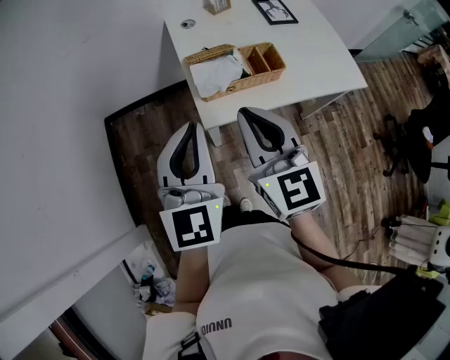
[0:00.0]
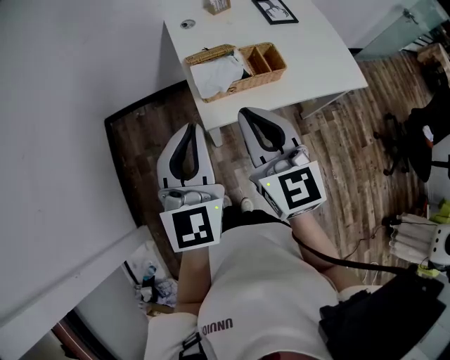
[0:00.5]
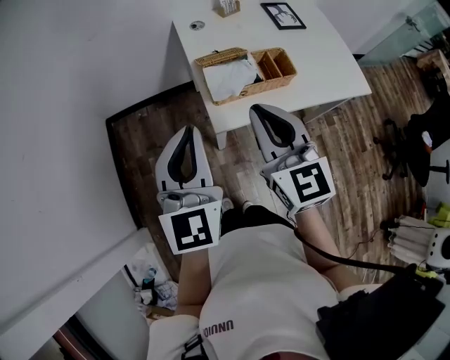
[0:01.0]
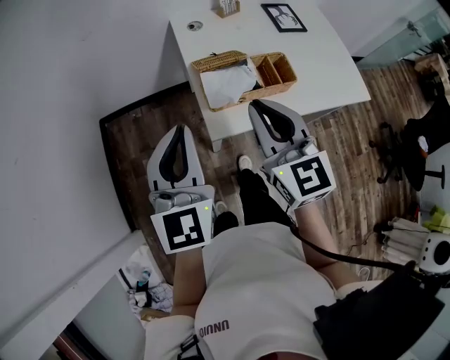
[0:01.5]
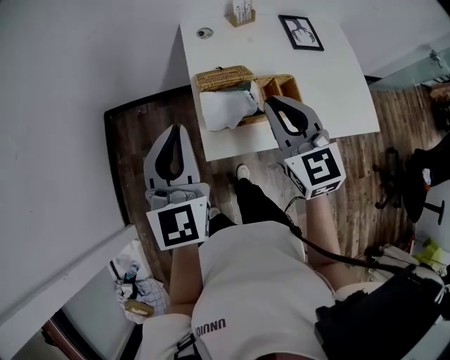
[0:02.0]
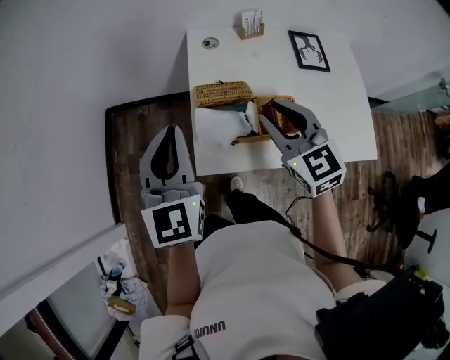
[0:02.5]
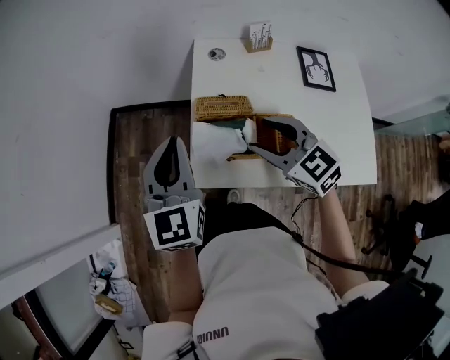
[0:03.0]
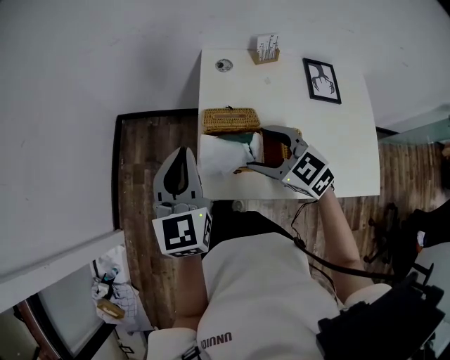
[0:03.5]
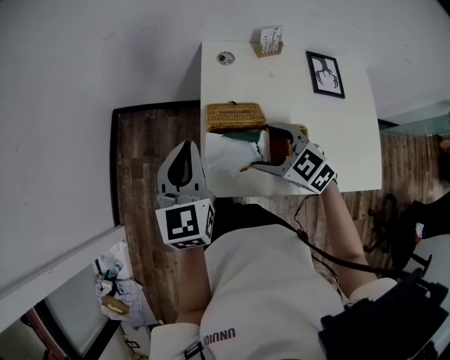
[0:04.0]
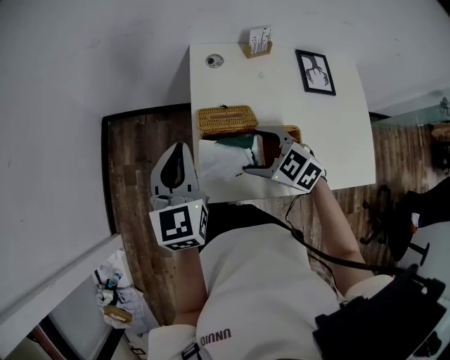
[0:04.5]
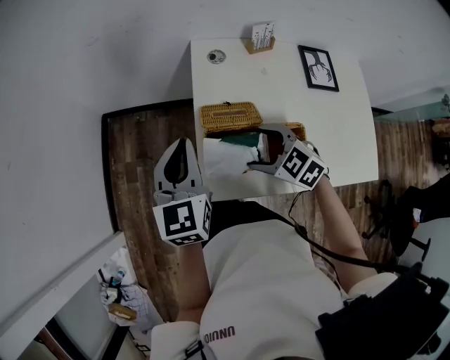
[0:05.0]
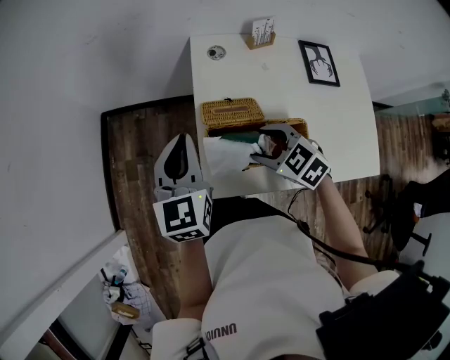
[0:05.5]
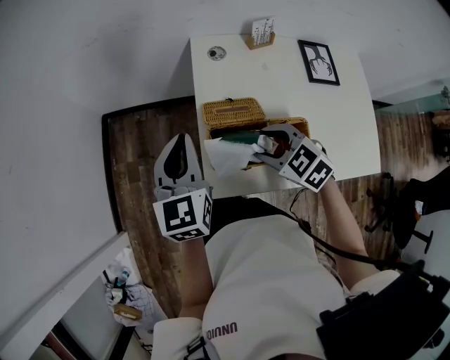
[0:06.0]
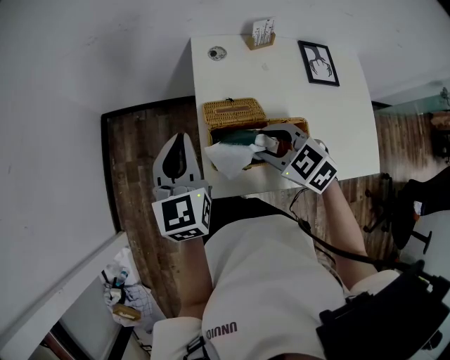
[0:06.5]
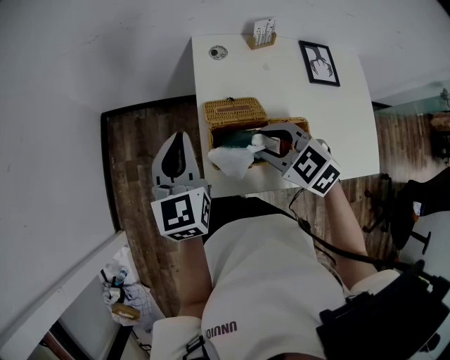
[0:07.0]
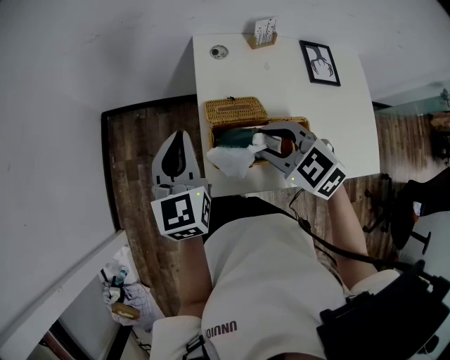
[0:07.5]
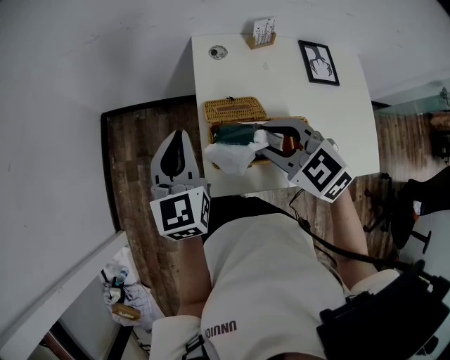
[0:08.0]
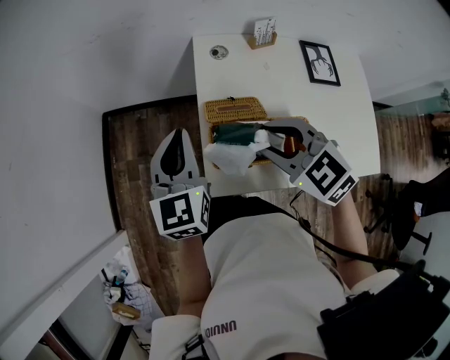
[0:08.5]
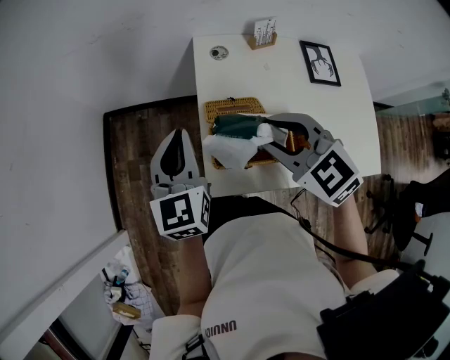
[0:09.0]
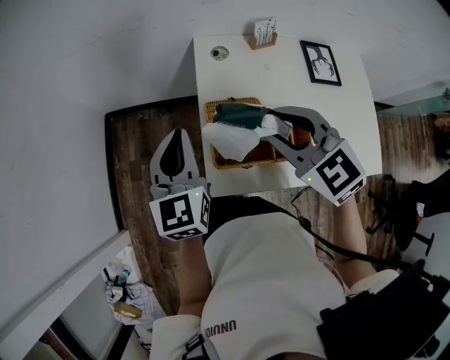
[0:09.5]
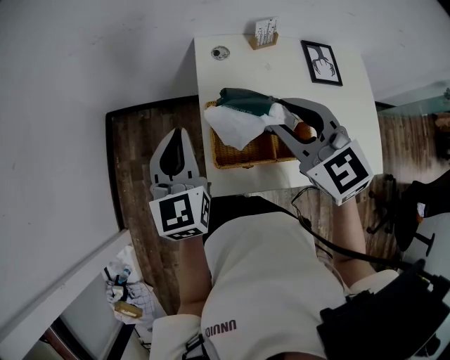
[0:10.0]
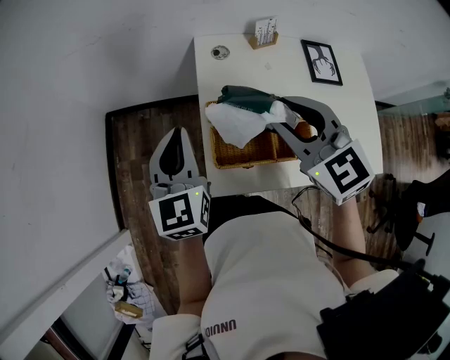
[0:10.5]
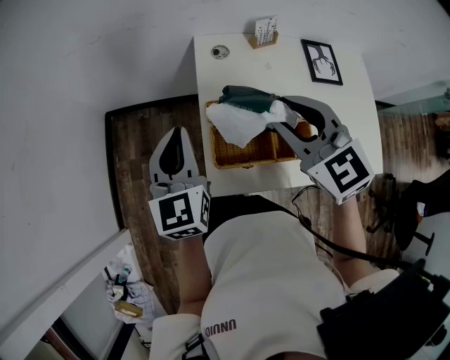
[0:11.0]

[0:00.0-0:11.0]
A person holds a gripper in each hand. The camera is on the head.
0:00.0 to 0:02.0: The left gripper goes about 10 cm forward; the right gripper shifts roughly 15 cm forward and to the right.
0:02.0 to 0:03.5: The right gripper moves downward, some 10 cm, changes its angle by some 40 degrees, and opens. Meanwhile the left gripper shifts by about 10 cm.
0:03.5 to 0:05.5: The left gripper goes roughly 5 cm forward, while the right gripper goes approximately 5 cm downward.
0:05.5 to 0:07.5: The right gripper moves upward, roughly 10 cm.
0:07.5 to 0:09.0: The right gripper heads upward, covering about 5 cm.
0:09.0 to 0:11.0: The right gripper ends up roughly 5 cm from where it was.

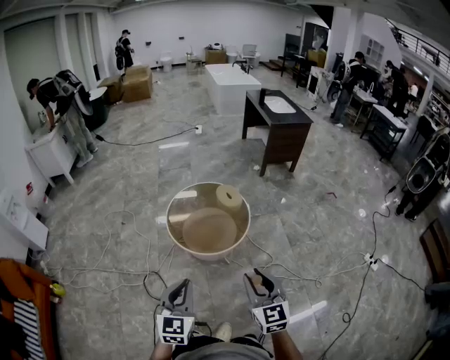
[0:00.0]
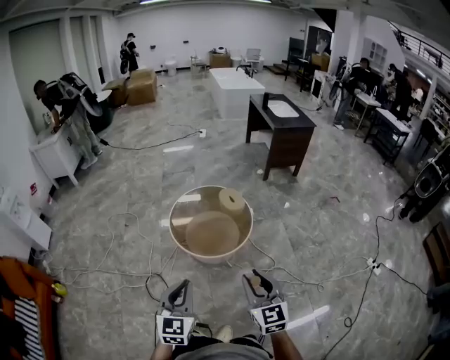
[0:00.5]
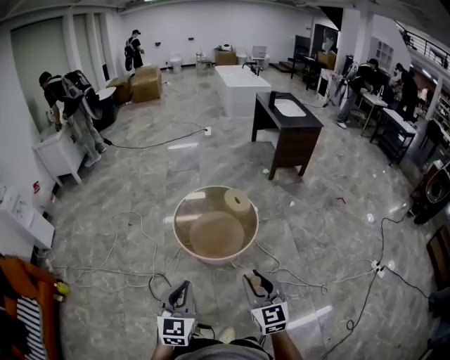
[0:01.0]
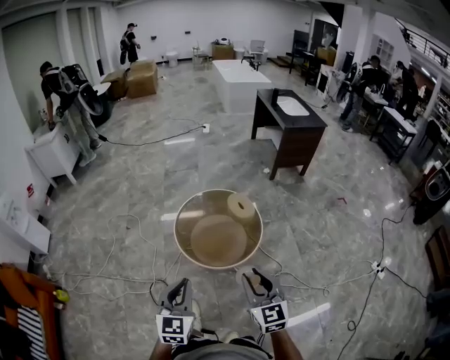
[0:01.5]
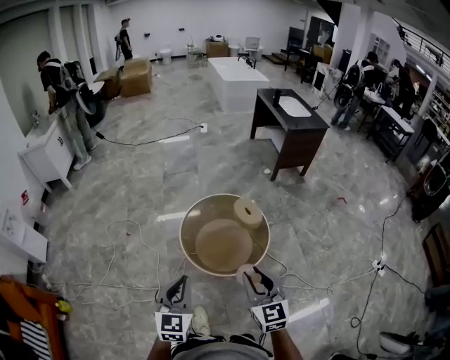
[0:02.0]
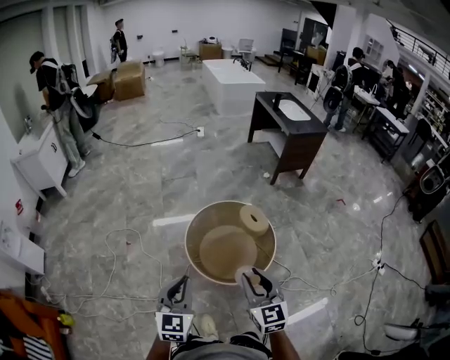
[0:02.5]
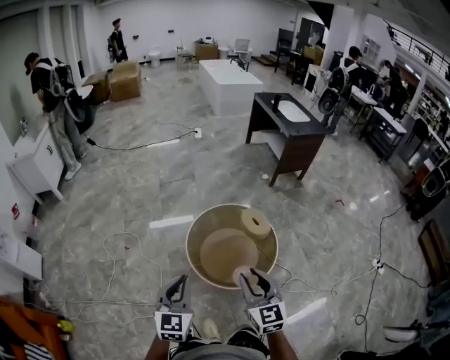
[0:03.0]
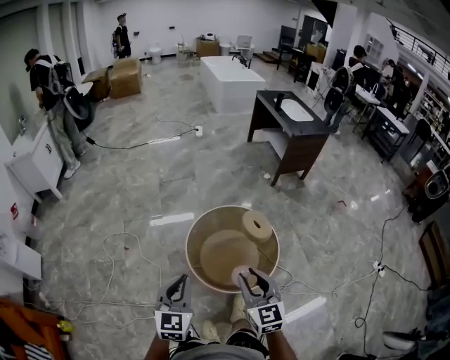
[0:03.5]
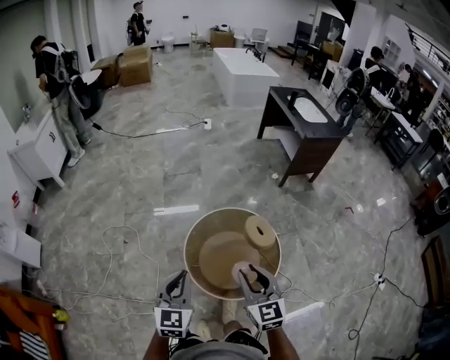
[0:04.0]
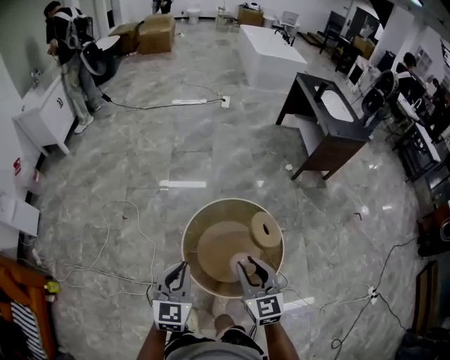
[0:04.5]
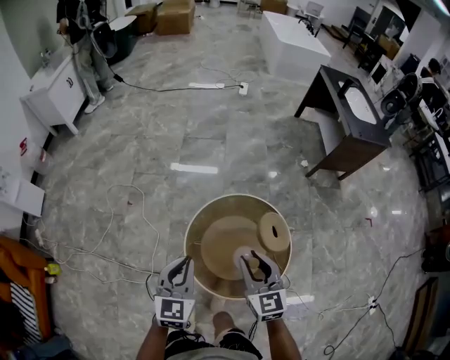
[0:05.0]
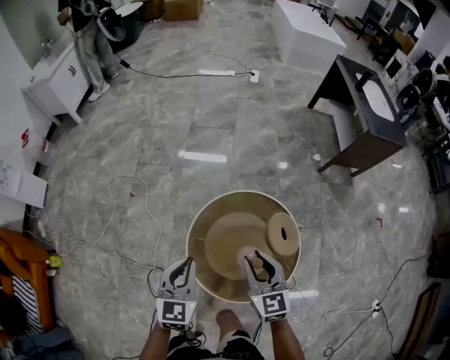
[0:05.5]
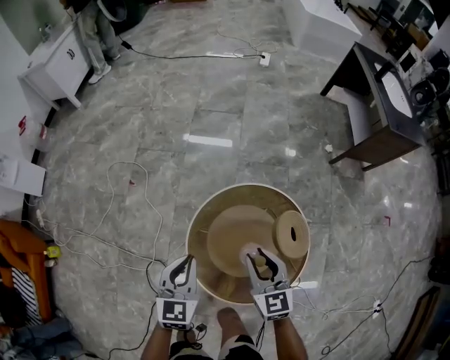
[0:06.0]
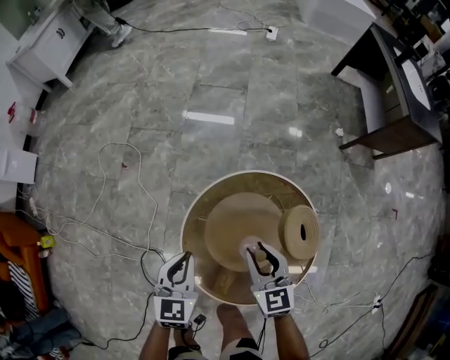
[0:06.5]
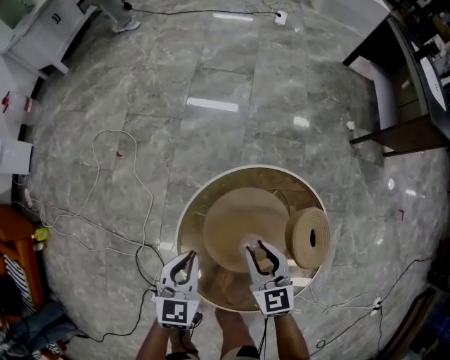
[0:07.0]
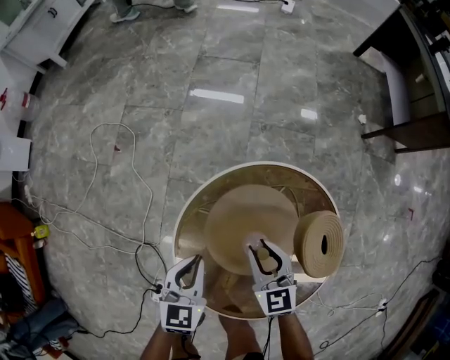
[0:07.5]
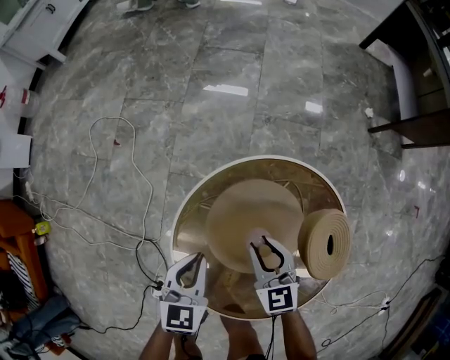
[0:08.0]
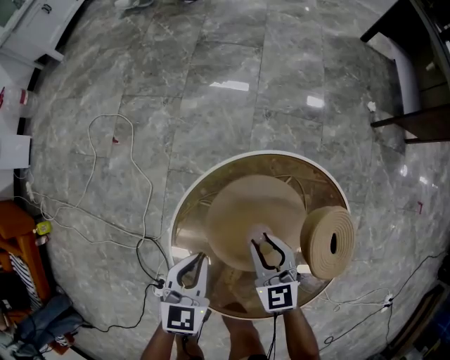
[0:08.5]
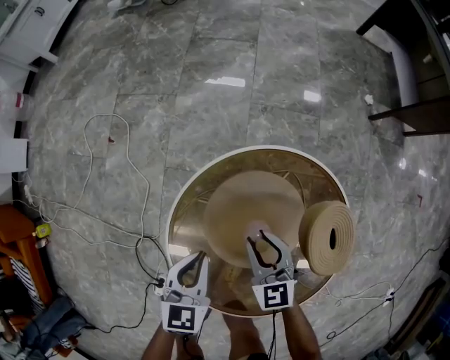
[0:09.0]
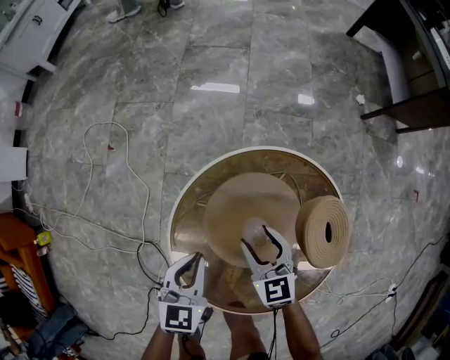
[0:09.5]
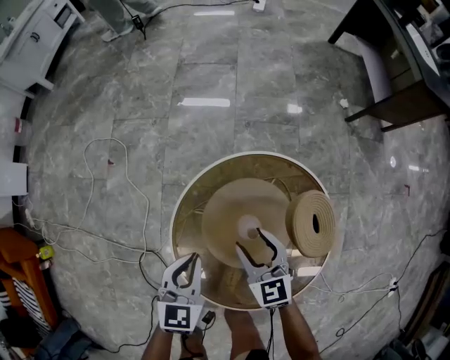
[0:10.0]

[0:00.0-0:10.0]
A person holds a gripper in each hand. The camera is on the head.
0:00.0 to 0:02.0: Both grippers travel together forward and to the left, about 25 cm.
0:02.0 to 0:04.0: Both grippers move forward, approximately 25 cm.
0:04.0 to 0:06.0: The right gripper shifts roughly 35 cm forward and downward, and changes its angle by approximately 20 degrees. The left gripper is displaced downward and forward by some 30 cm, and changes its angle by some 20 degrees.
0:06.0 to 0:08.0: Both grippers move downward, about 30 cm.
0:08.0 to 0:10.0: Both grippers move upward, roughly 5 cm. The right gripper opens its fingers.

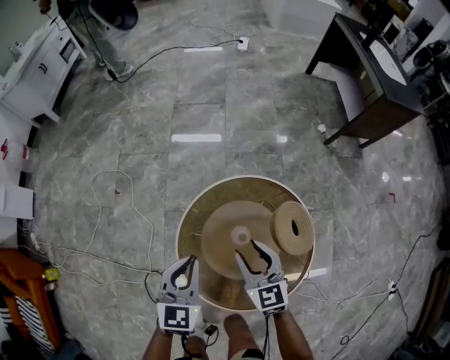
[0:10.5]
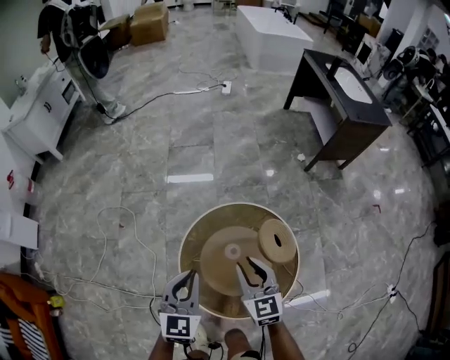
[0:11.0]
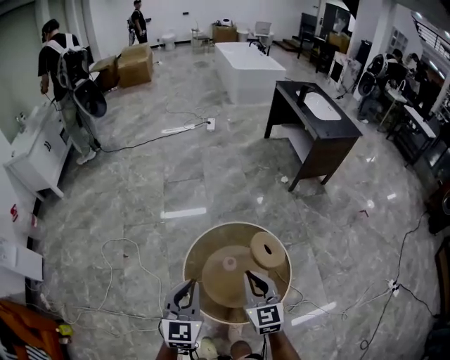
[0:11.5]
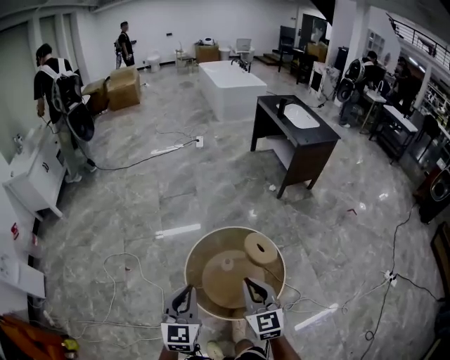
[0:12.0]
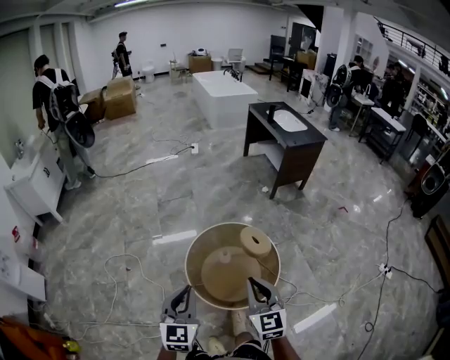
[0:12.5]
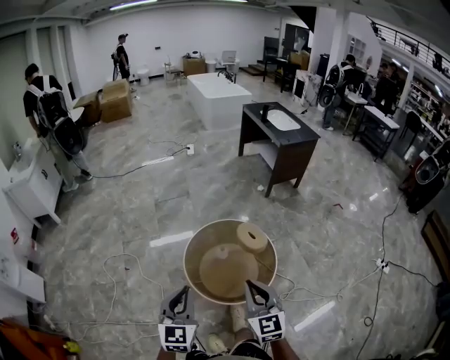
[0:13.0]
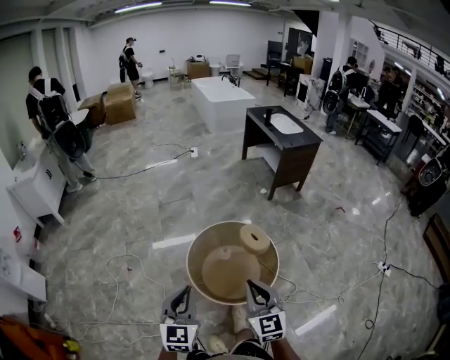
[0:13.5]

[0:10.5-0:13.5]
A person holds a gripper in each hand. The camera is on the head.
0:10.5 to 0:12.0: Both grippers travel together upward and backward, about 40 cm. The left gripper changes its angle by some 20 degrees, while the right gripper changes its angle by about 20 degrees, and closes up.
0:12.0 to 0:13.5: Both grippers move backward, about 20 cm.

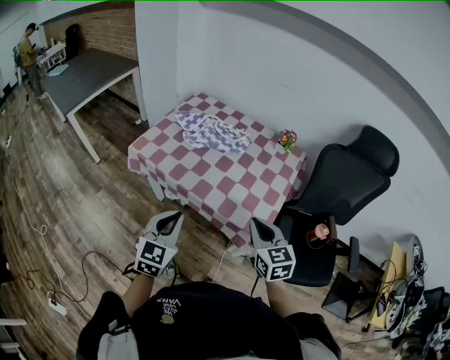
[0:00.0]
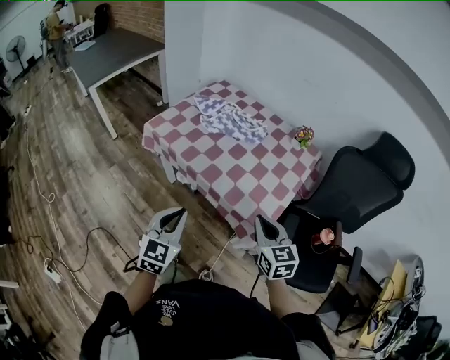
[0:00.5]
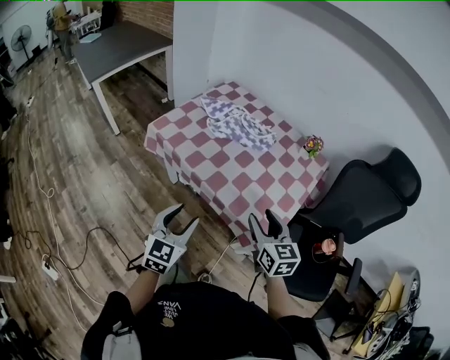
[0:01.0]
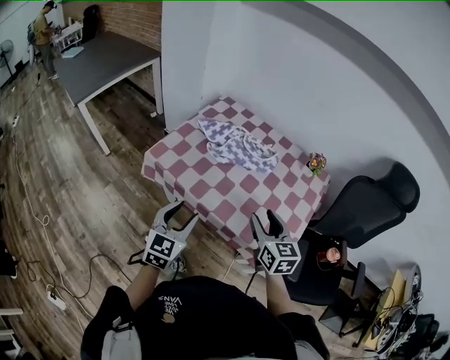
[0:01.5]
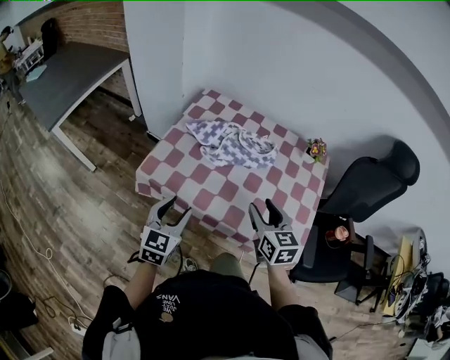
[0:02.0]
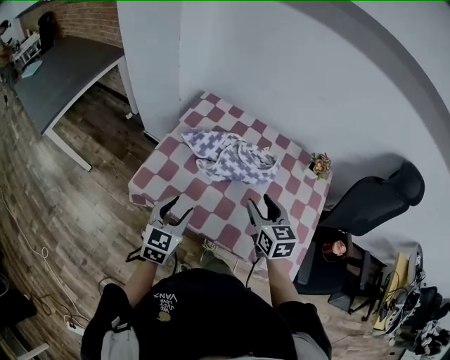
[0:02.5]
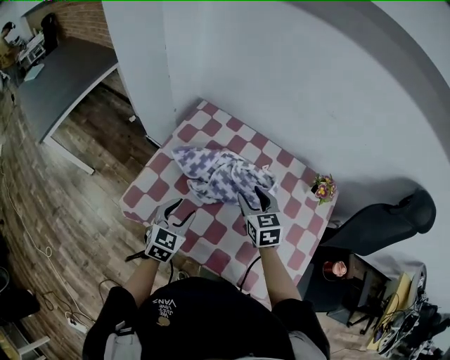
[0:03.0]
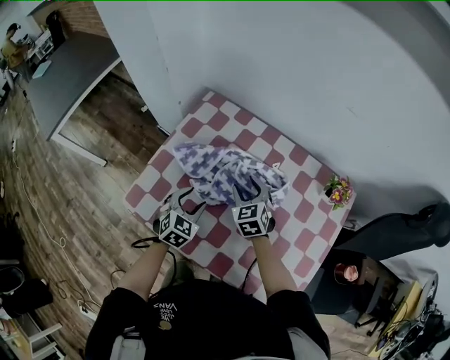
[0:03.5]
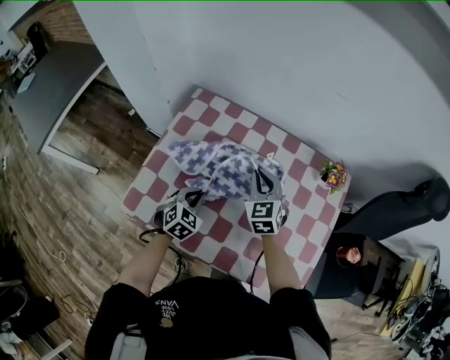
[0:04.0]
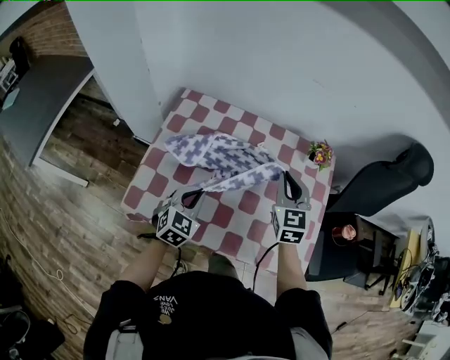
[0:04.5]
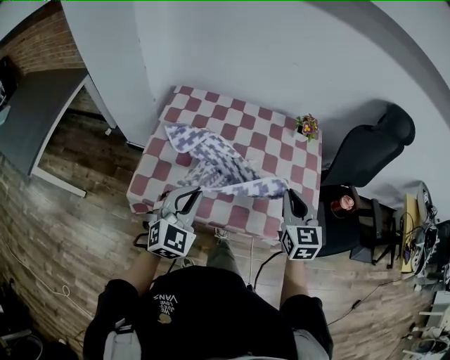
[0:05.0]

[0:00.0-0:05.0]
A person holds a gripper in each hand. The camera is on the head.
0:00.0 to 0:02.5: The grippers both shift forward by approximately 30 cm. The left gripper opens its fingers. The right gripper opens its fingers.
0:02.5 to 0:05.0: The right gripper is displaced to the right by some 10 cm, travels forward and back again, about 20 cm each way, changes its angle by some 20 degrees, and closes its fingers; the left gripper moves about 15 cm downward and comes back, rotates approximately 30 degrees, and closes up.
